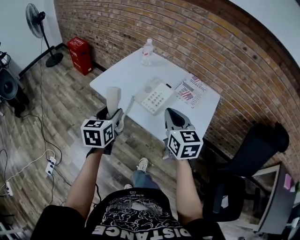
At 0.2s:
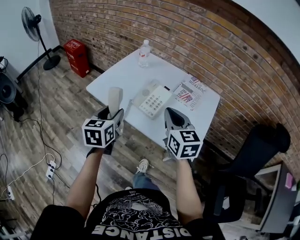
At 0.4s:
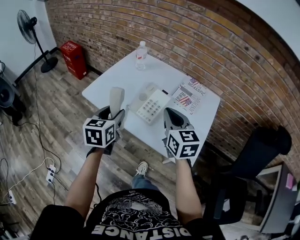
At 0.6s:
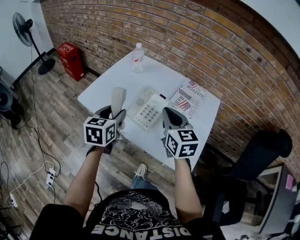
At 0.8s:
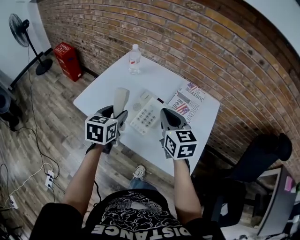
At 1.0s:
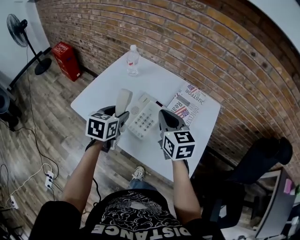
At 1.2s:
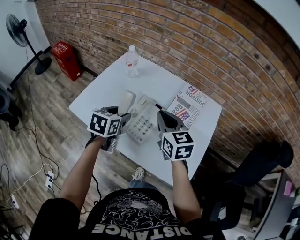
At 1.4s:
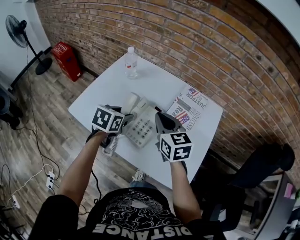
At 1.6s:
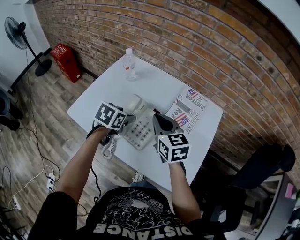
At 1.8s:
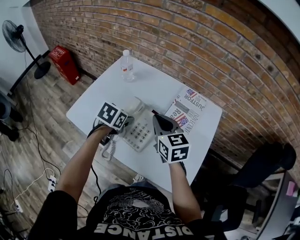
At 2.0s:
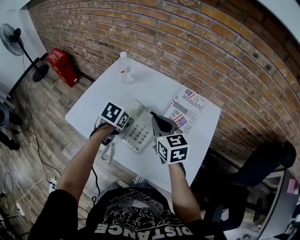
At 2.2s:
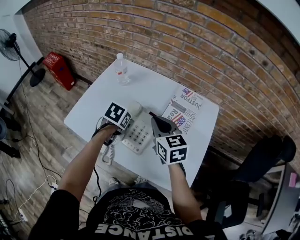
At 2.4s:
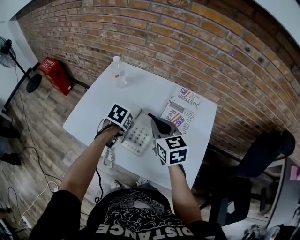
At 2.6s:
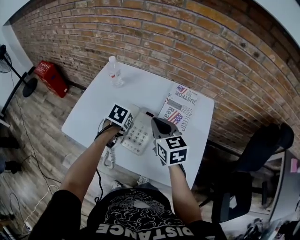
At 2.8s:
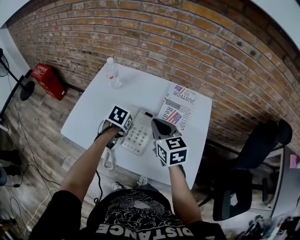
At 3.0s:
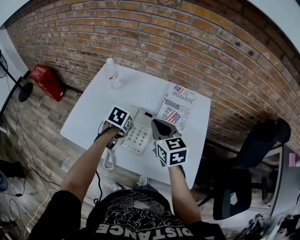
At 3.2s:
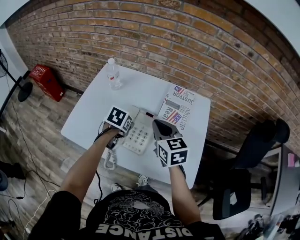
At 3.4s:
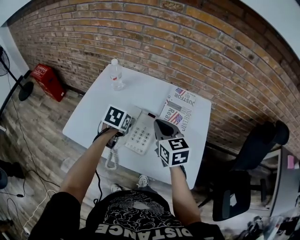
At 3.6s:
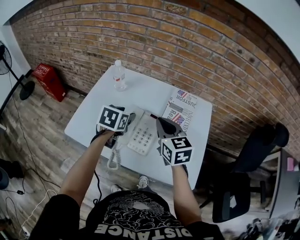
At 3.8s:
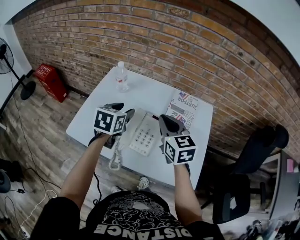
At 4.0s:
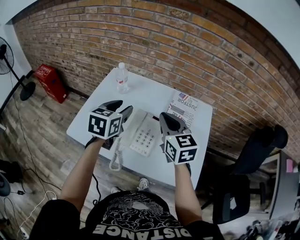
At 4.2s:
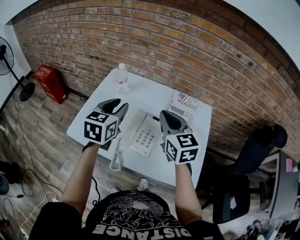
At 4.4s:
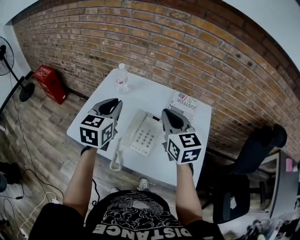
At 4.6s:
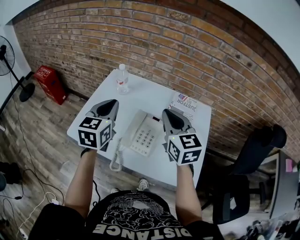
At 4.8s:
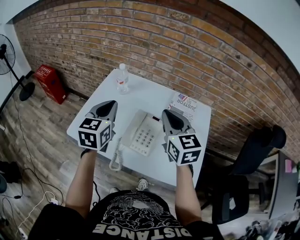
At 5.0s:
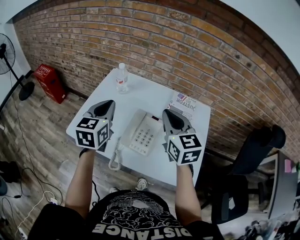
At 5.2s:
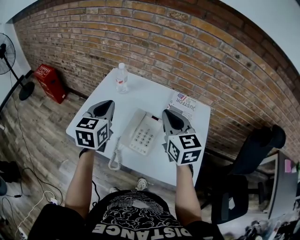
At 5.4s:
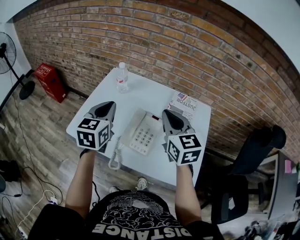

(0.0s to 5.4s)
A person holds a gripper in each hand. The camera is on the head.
0.0s - 1.4s: The right gripper goes roughly 20 cm forward, while the left gripper goes some 25 cm forward and to the right, and changes its angle by approximately 30 degrees.
1.4s - 2.8s: The left gripper heads downward, covering some 5 cm, and changes its angle by about 20 degrees.
2.8s - 4.0s: The left gripper heads upward, covering about 20 cm, and points its fingers some 40 degrees further upward. The right gripper travels upward by approximately 5 cm.
4.0s - 5.4s: The left gripper moves about 5 cm, and closes up.

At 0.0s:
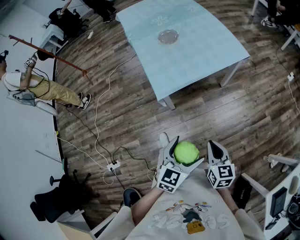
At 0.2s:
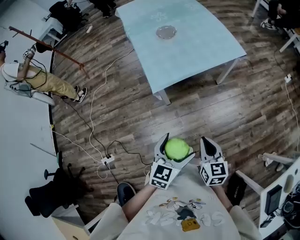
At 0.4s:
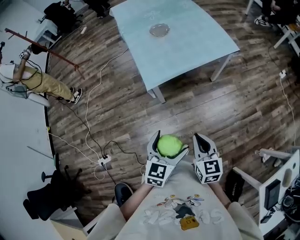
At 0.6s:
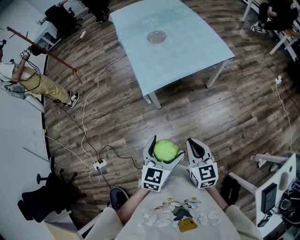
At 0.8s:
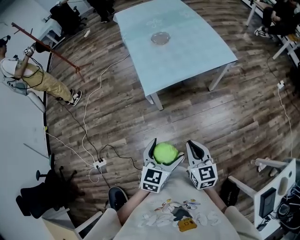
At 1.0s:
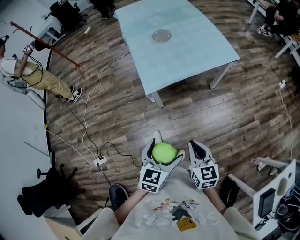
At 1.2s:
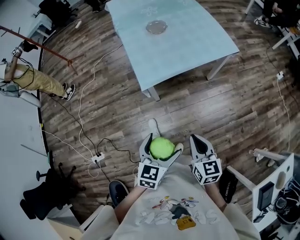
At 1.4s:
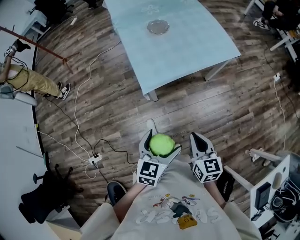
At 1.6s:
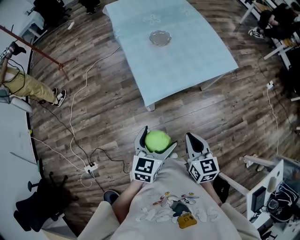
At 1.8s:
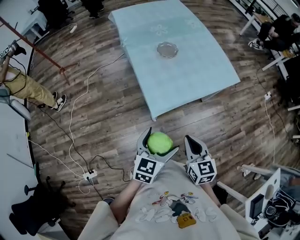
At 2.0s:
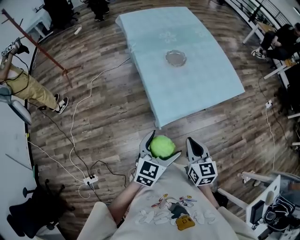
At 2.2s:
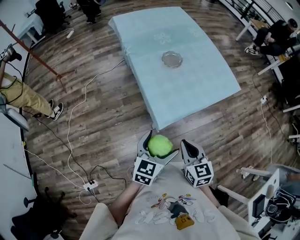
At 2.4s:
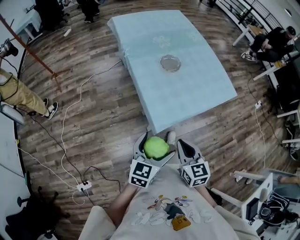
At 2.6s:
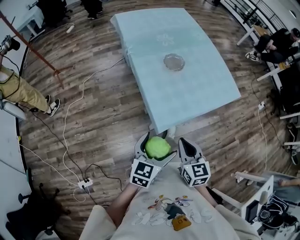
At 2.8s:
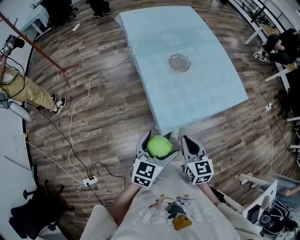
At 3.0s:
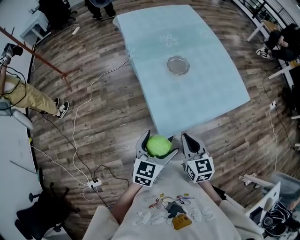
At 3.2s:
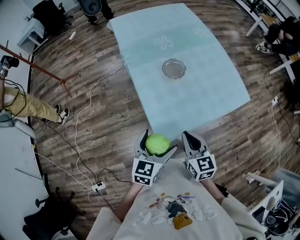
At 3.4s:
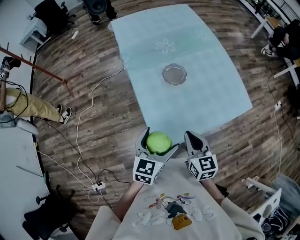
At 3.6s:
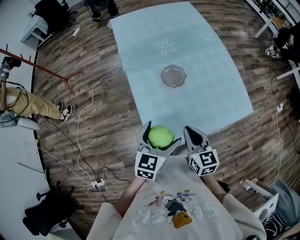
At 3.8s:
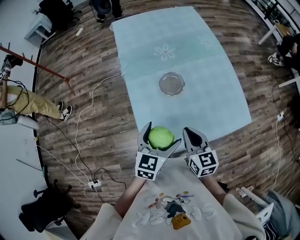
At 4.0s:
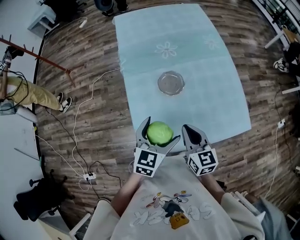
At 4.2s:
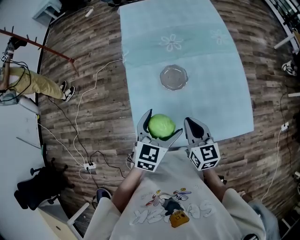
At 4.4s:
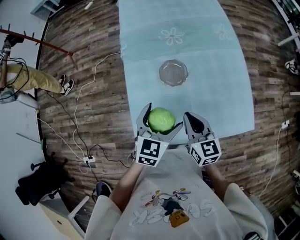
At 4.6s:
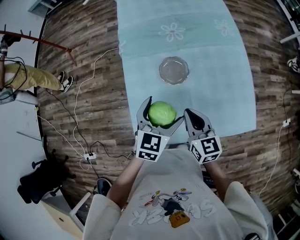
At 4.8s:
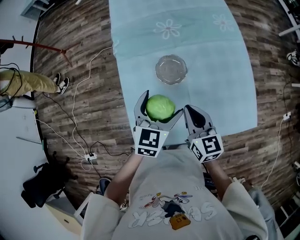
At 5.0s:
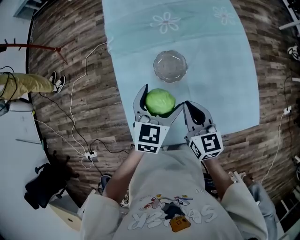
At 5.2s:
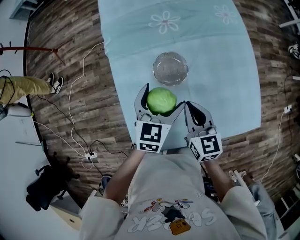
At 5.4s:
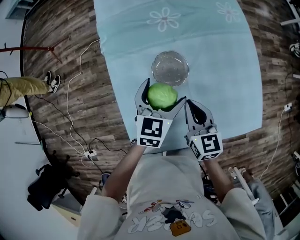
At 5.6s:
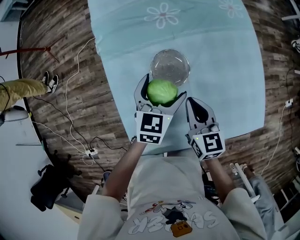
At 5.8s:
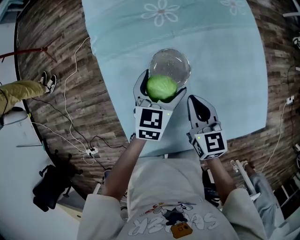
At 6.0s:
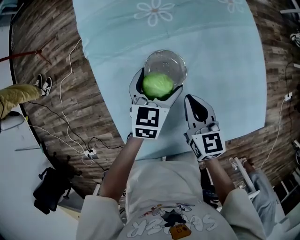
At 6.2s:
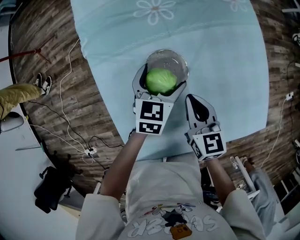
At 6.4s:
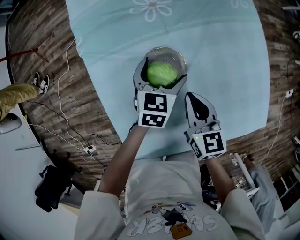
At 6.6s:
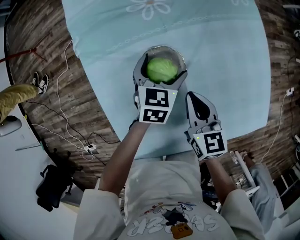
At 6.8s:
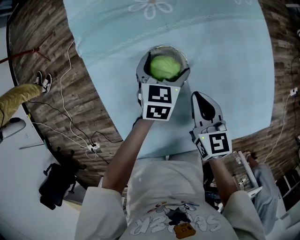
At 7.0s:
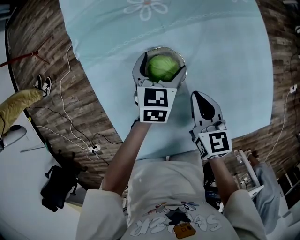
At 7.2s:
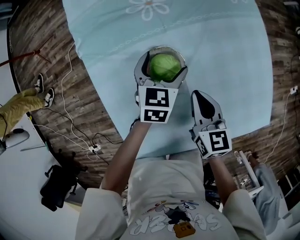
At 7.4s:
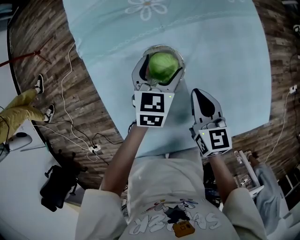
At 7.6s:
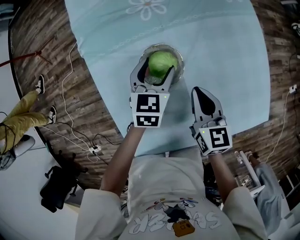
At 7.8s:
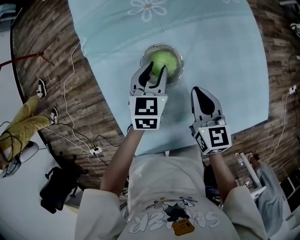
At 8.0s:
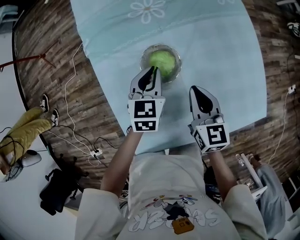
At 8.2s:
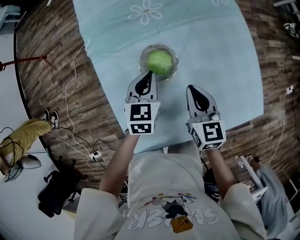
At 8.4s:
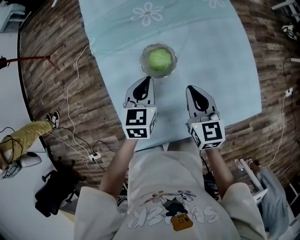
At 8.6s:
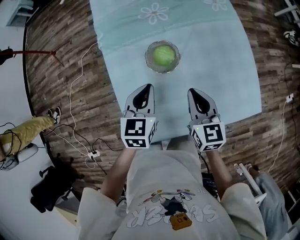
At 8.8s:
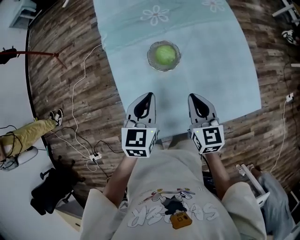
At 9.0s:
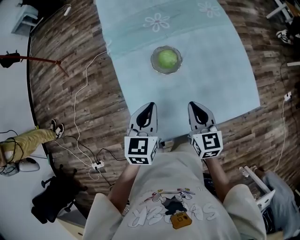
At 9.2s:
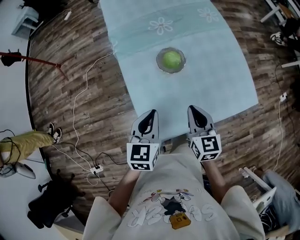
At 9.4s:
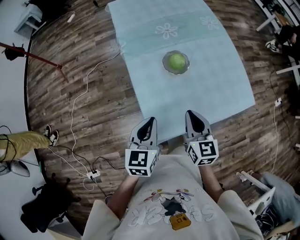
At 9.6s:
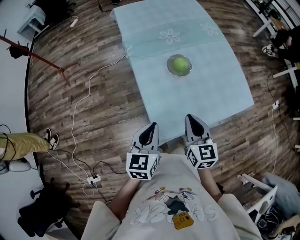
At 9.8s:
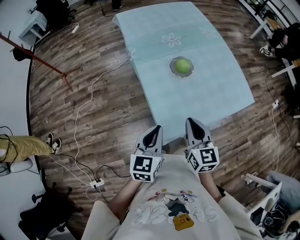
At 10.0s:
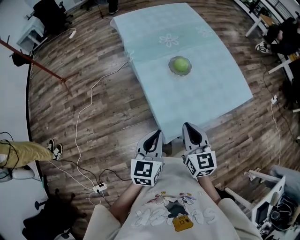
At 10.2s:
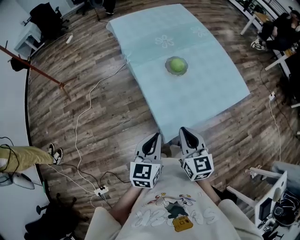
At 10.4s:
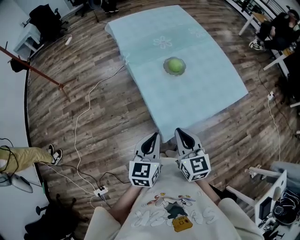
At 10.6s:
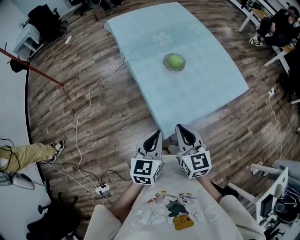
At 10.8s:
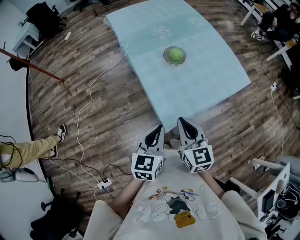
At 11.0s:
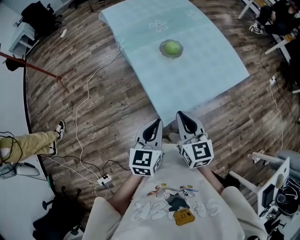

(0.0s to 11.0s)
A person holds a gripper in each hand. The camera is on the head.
0.0s - 1.6s: The two grippers go approximately 15 cm to the left and forward.
1.6s - 3.2s: The grippers both shift forward and to the left by about 25 cm.
3.2s - 4.8s: Both grippers travel together forward and to the right, some 30 cm.
4.8s - 6.2s: The grippers both shift downward and forward by about 20 cm.
6.2s - 7.8s: The left gripper closes.
7.8s - 9.4s: Both grippers move backward, upward and to the left, roughly 35 cm.
9.4s - 11.0s: The left gripper shifts about 15 cm backward. The right gripper moves backward and to the left, roughly 15 cm.

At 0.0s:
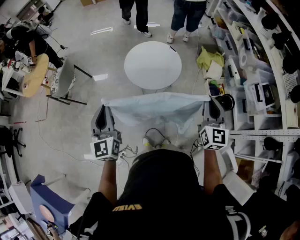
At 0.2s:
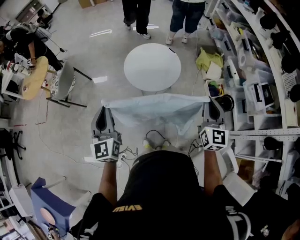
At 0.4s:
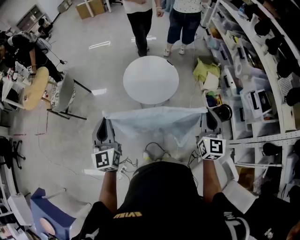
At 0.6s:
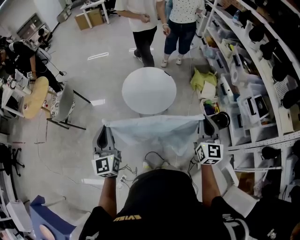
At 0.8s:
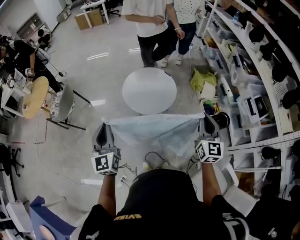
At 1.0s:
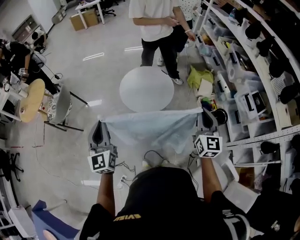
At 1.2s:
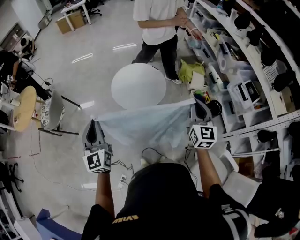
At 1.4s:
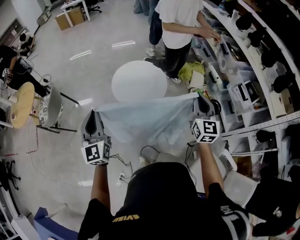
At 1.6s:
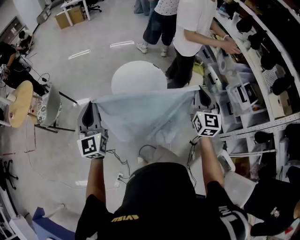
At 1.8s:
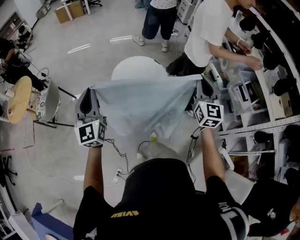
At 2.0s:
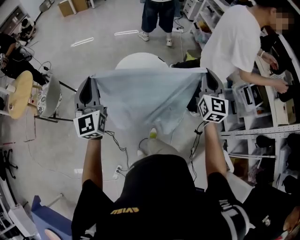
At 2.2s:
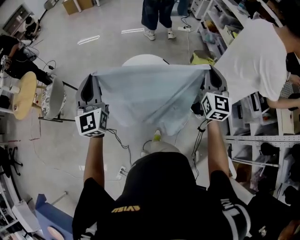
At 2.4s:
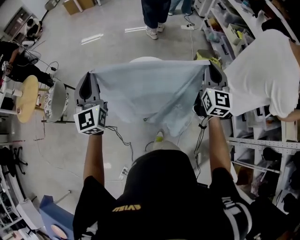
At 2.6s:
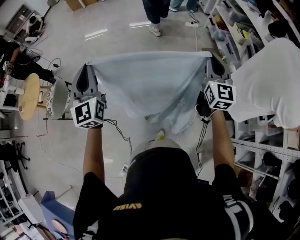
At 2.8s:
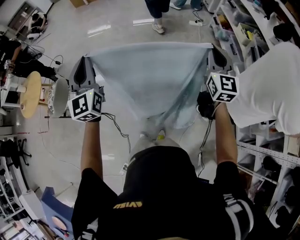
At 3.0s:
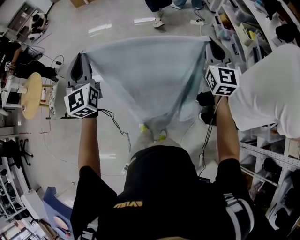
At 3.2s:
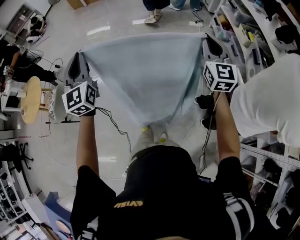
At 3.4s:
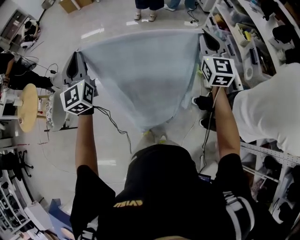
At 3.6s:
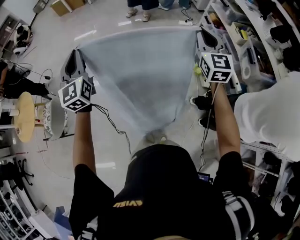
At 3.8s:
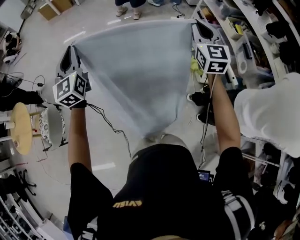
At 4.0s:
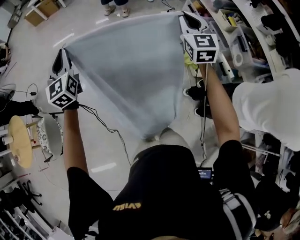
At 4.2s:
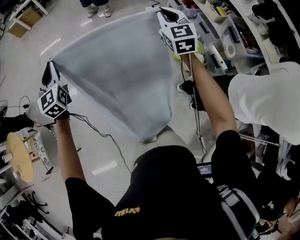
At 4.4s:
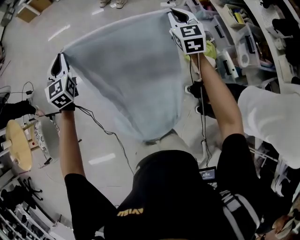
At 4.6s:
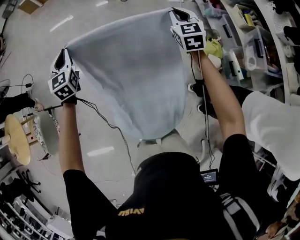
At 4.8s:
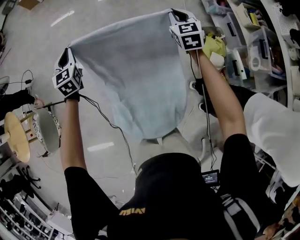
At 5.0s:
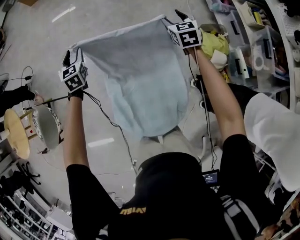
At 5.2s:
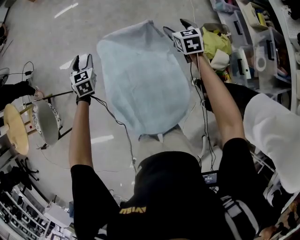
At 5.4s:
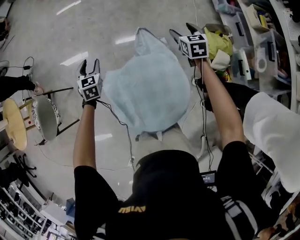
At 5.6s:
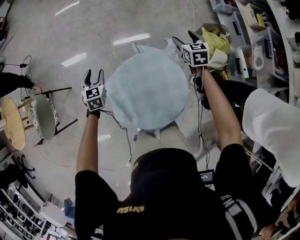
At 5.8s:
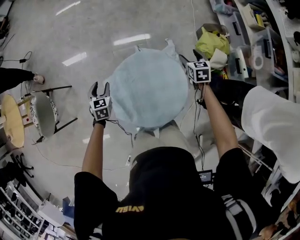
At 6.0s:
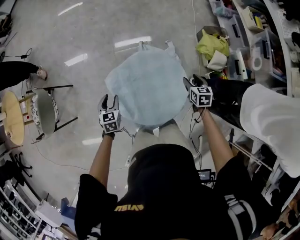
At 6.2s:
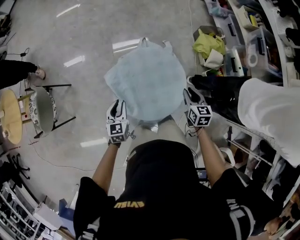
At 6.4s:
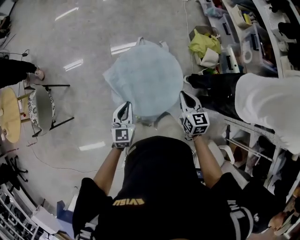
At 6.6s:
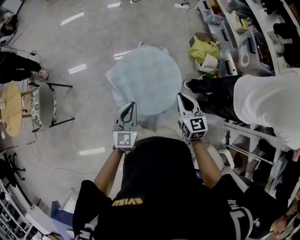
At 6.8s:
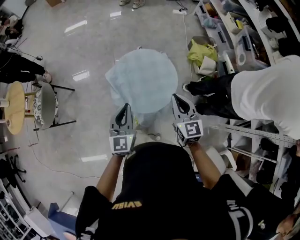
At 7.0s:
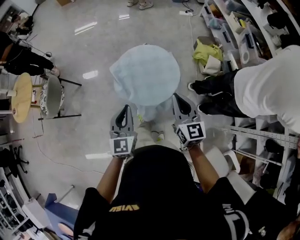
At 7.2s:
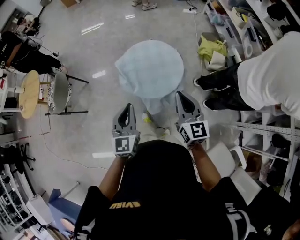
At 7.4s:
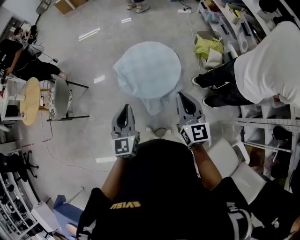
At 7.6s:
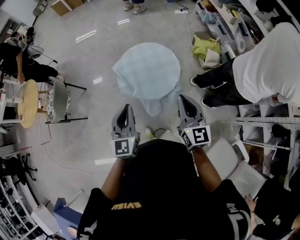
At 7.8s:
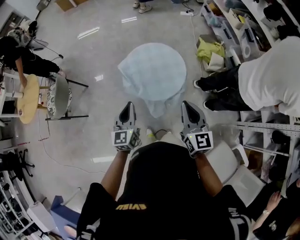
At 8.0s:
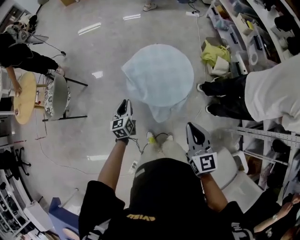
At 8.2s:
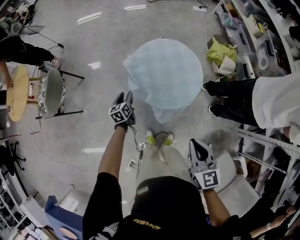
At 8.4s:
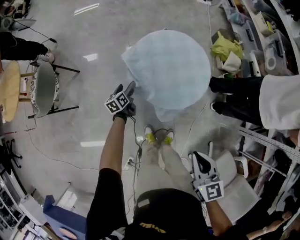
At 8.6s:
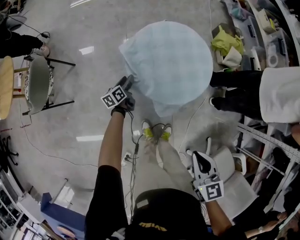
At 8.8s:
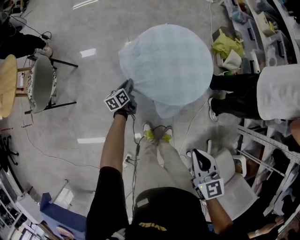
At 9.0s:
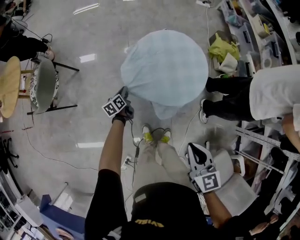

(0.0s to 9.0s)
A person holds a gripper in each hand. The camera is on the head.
0.0s - 1.6s: Both grippers move forward, some 10 cm.
1.6s - 3.0s: The grippers both shift forward by roughly 35 cm.
3.0s - 4.4s: The right gripper goes approximately 35 cm forward, and swivels some 20 degrees. The left gripper moves forward and downward, about 40 cm, and changes its angle by some 20 degrees.
4.4s - 6.0s: Both grippers travel together downward and backward, roughly 40 cm. The right gripper points its fingers about 30 degrees further downward, and opens its fingers; the left gripper angles its fingers downward, by approximately 30 degrees, and opens.
6.0s - 7.6s: The grippers both shift backward and upward by about 50 cm. The right gripper tips its fingers upward by roughly 40 degrees, and closes, while the left gripper tips its fingers upward by roughly 40 degrees, and closes.
7.6s - 9.0s: The left gripper travels downward, forward and to the left by some 50 cm, twists about 50 degrees counterclockwise, seen from behind, and opens and closes again. Meanwhile the right gripper moves downward and to the left, approximately 20 cm, and changes its angle by some 30 degrees.
